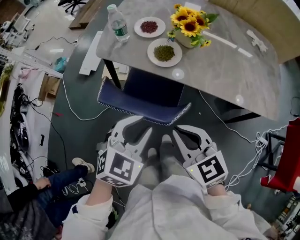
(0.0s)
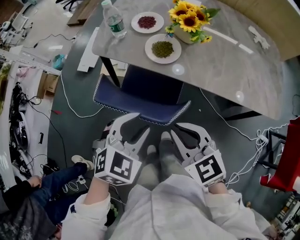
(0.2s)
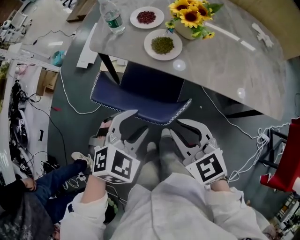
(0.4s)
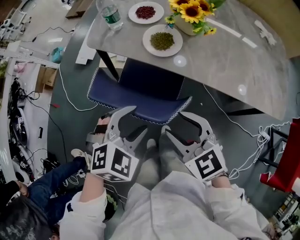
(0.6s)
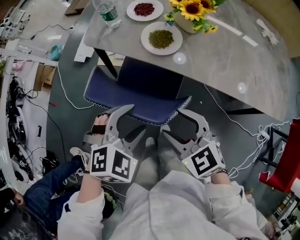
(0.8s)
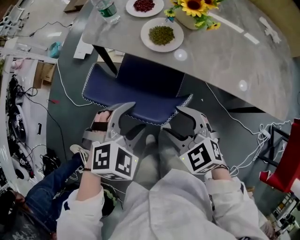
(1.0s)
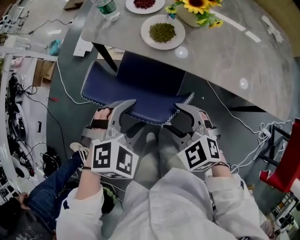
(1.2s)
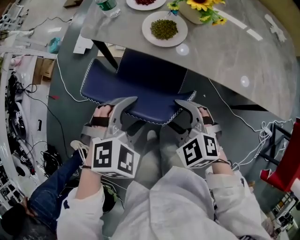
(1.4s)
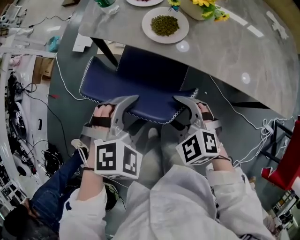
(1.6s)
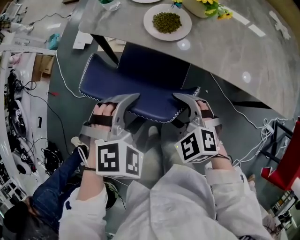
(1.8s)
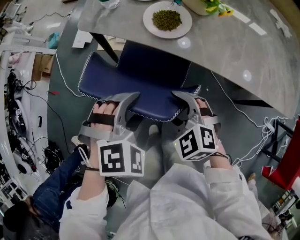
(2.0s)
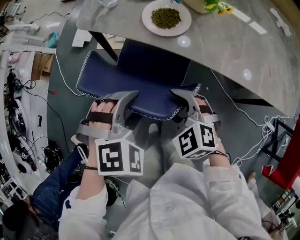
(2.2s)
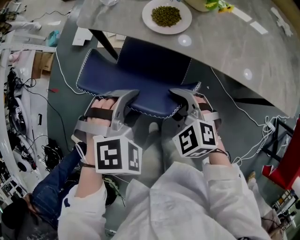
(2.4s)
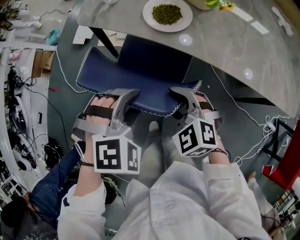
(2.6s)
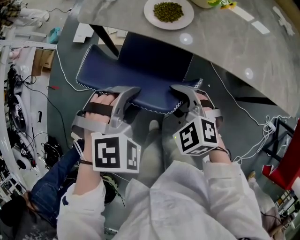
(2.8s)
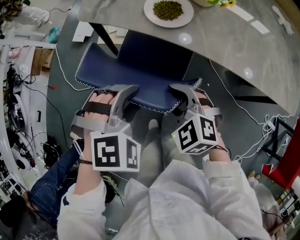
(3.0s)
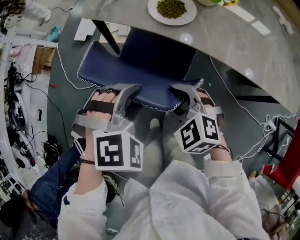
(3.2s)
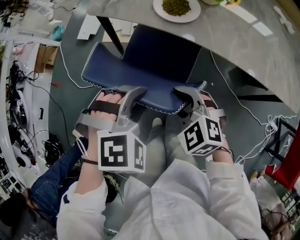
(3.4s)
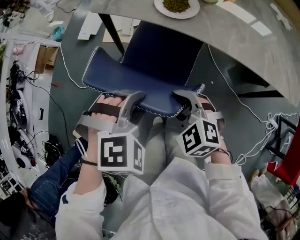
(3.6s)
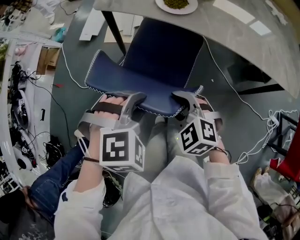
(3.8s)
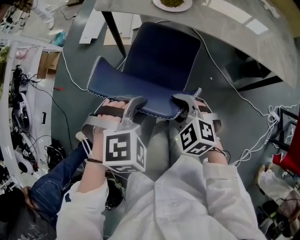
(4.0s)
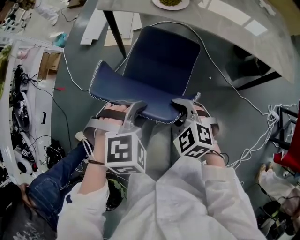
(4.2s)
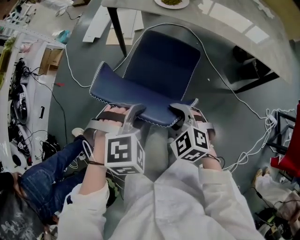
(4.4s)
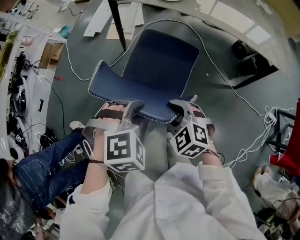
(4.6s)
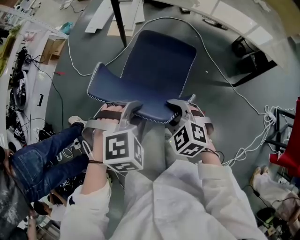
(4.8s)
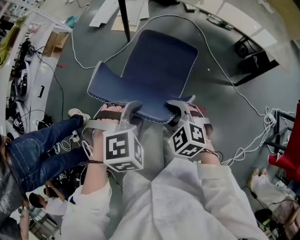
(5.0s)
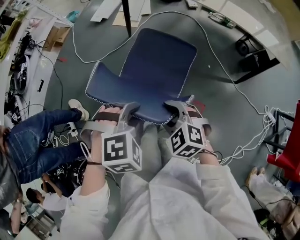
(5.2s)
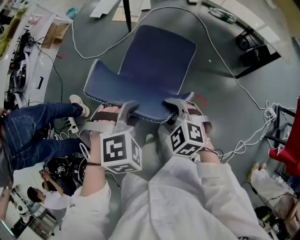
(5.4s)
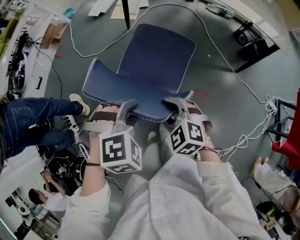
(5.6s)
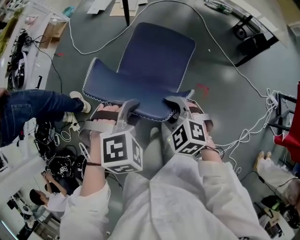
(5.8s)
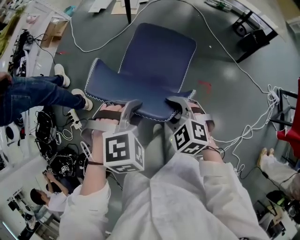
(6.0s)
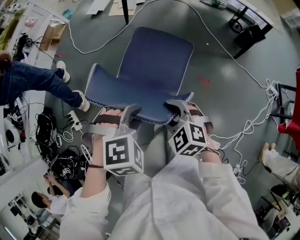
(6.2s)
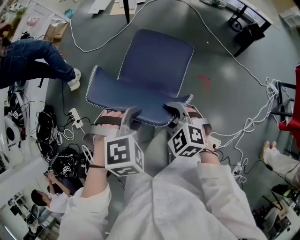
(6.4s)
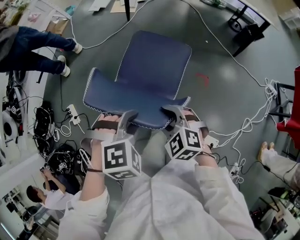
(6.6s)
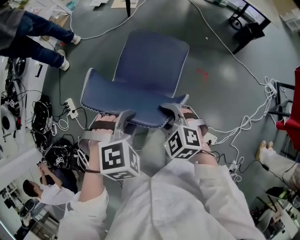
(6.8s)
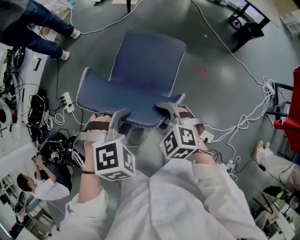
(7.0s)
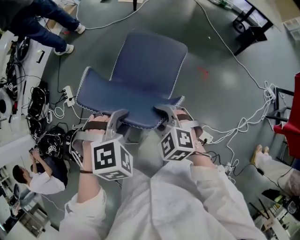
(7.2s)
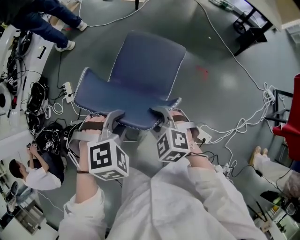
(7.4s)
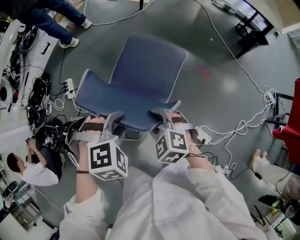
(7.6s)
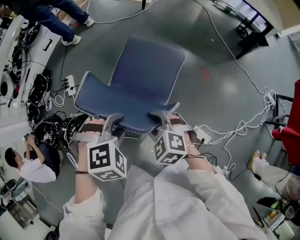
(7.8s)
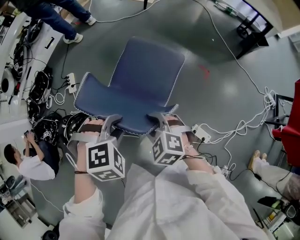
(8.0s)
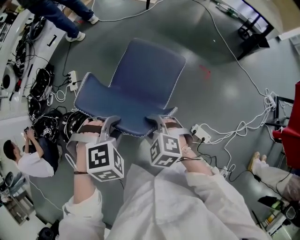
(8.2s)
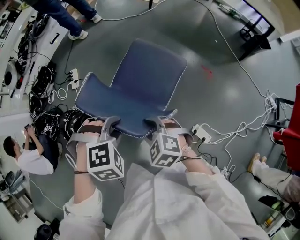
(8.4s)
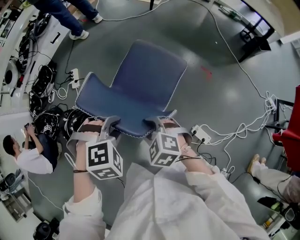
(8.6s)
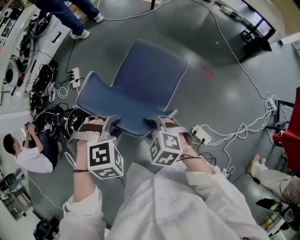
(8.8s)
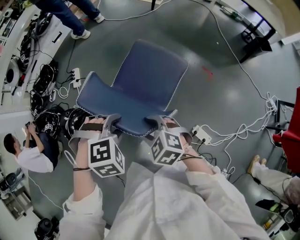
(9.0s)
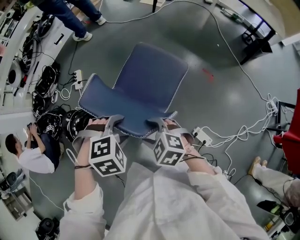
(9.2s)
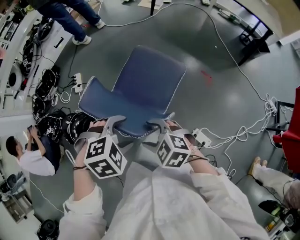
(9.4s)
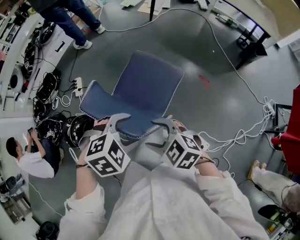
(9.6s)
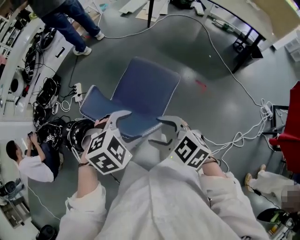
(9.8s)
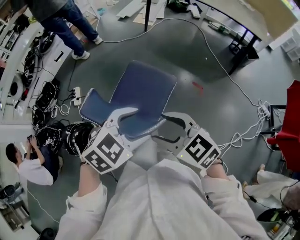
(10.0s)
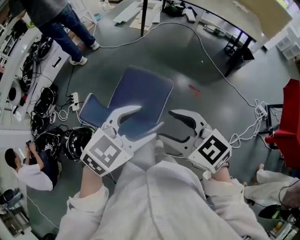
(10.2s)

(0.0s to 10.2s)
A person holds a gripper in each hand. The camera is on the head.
0.0s - 1.4s: The left gripper travels downward by roughly 10 cm, rotates roughly 30 degrees, and opens up; the right gripper is displaced downward by approximately 15 cm, rotates some 30 degrees, and opens up.
1.4s - 3.0s: The left gripper closes.
3.0s - 4.4s: Both grippers move backward, approximately 25 cm.
4.4s - 5.8s: Both grippers travel together backward, about 25 cm.
5.8s - 7.2s: The grippers both shift backward by some 25 cm.
7.2s - 8.8s: The left gripper changes place by some 20 cm. The right gripper changes place by approximately 20 cm.
8.8s - 10.2s: Both grippers move upward, roughly 20 cm. The right gripper points its fingers some 30 degrees further upward, while the left gripper points its fingers some 40 degrees further upward, and opens up.

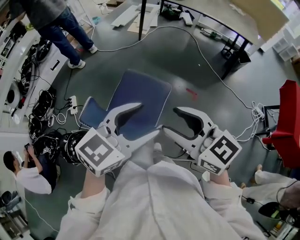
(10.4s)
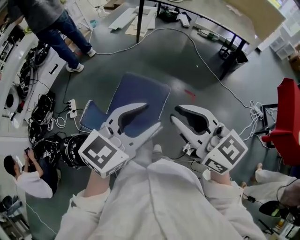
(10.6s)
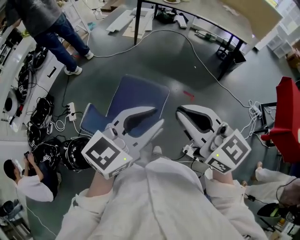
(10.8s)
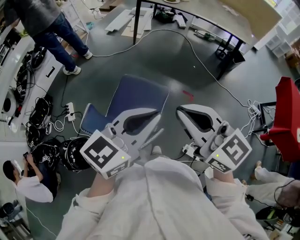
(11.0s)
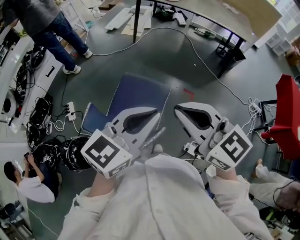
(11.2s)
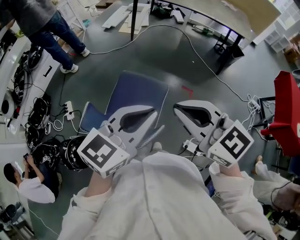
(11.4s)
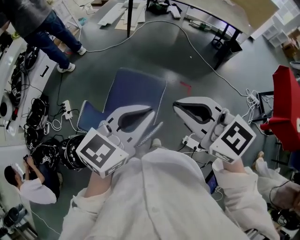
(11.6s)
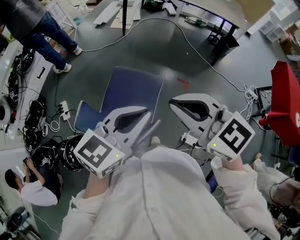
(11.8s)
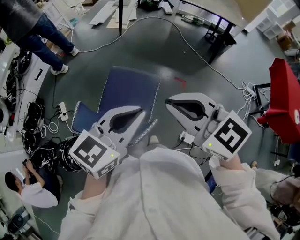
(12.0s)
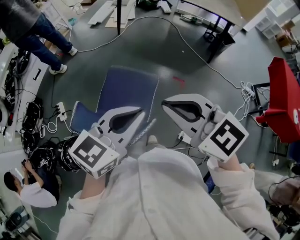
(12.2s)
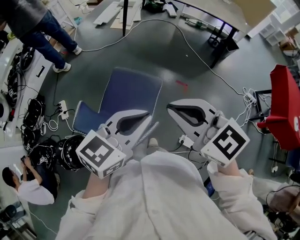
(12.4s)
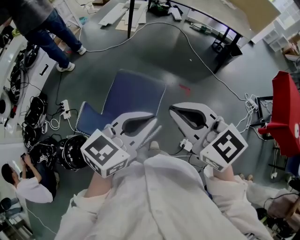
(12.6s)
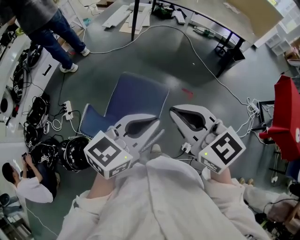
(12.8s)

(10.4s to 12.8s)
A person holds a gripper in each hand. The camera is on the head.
10.4s - 11.6s: The right gripper closes its fingers, while the left gripper closes up.
11.6s - 12.8s: The grippers make only small movements.

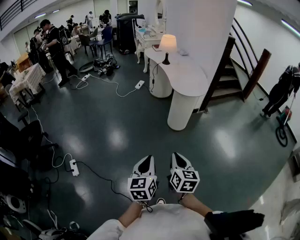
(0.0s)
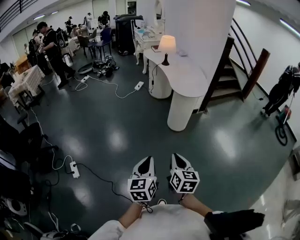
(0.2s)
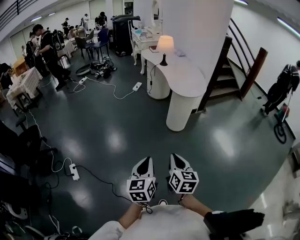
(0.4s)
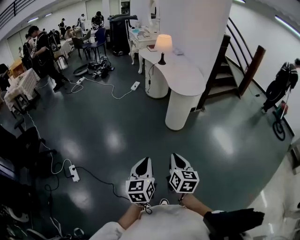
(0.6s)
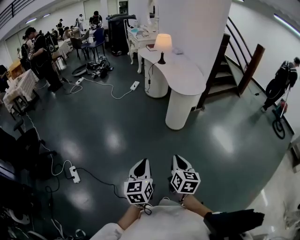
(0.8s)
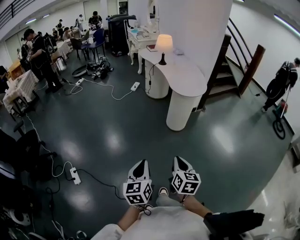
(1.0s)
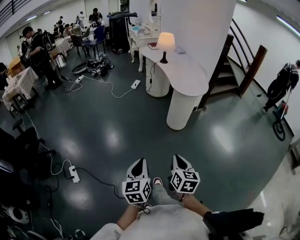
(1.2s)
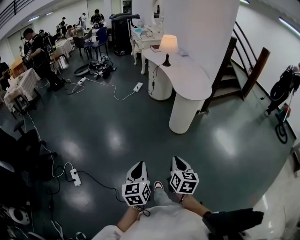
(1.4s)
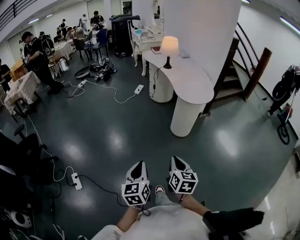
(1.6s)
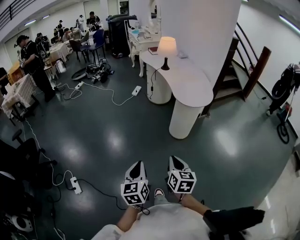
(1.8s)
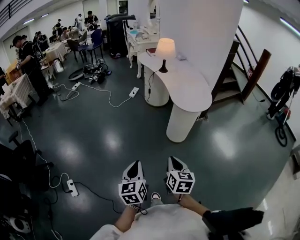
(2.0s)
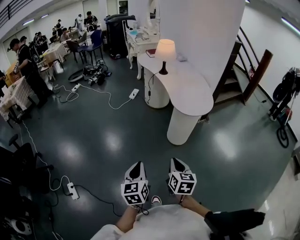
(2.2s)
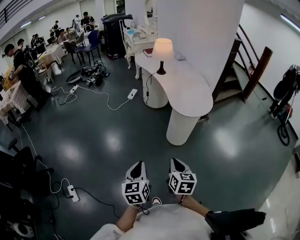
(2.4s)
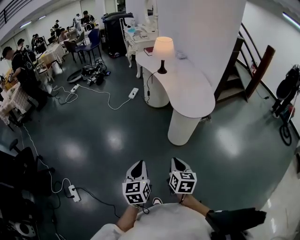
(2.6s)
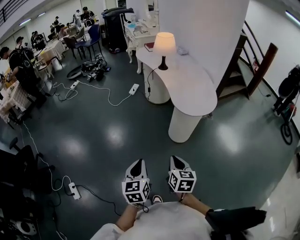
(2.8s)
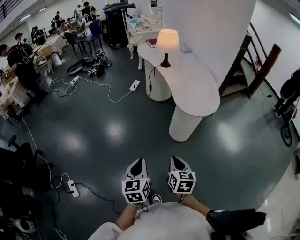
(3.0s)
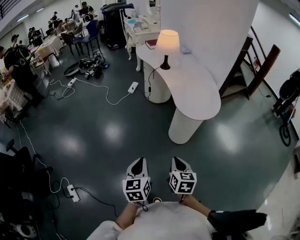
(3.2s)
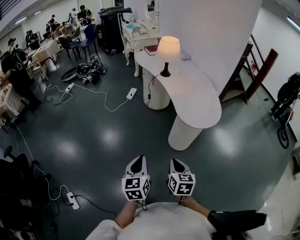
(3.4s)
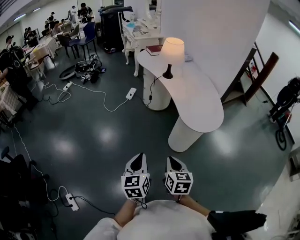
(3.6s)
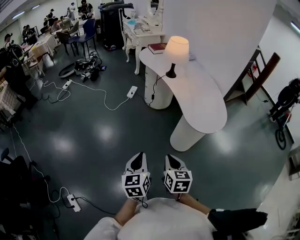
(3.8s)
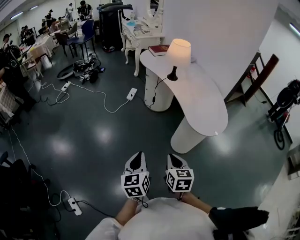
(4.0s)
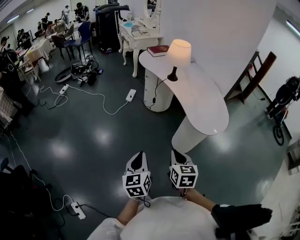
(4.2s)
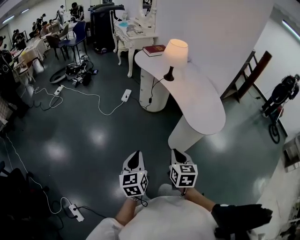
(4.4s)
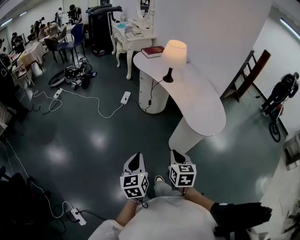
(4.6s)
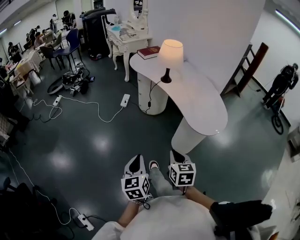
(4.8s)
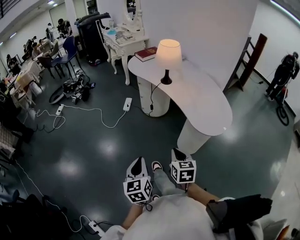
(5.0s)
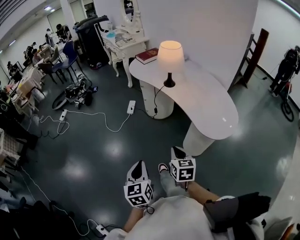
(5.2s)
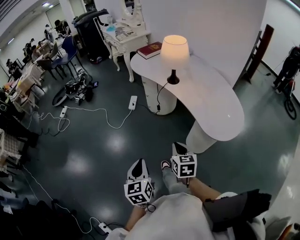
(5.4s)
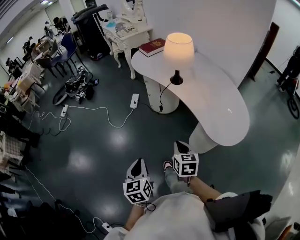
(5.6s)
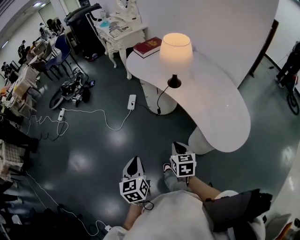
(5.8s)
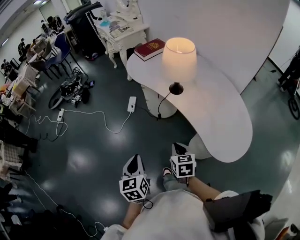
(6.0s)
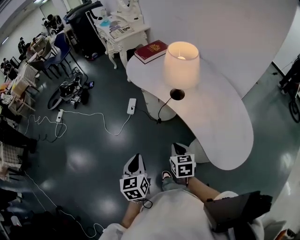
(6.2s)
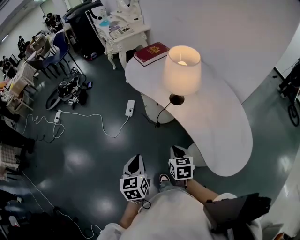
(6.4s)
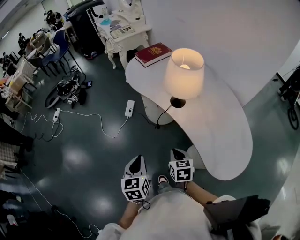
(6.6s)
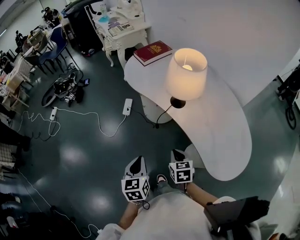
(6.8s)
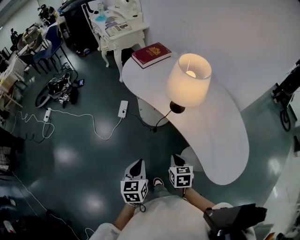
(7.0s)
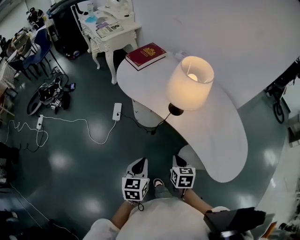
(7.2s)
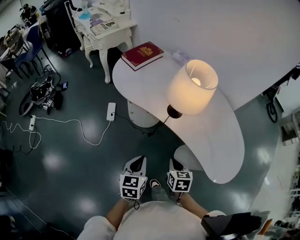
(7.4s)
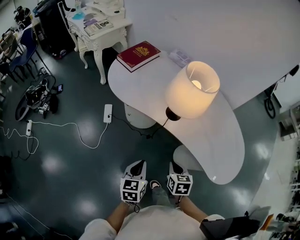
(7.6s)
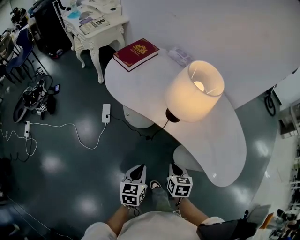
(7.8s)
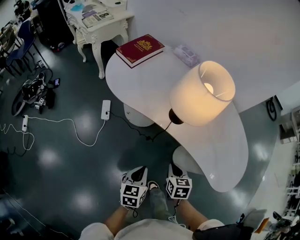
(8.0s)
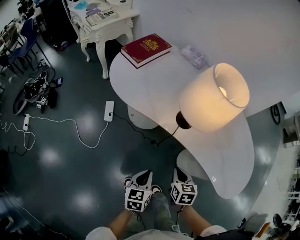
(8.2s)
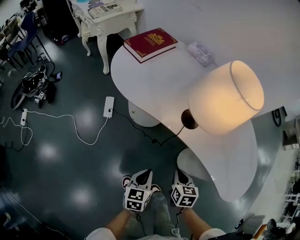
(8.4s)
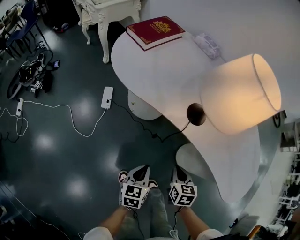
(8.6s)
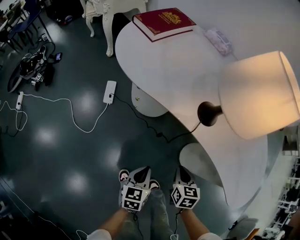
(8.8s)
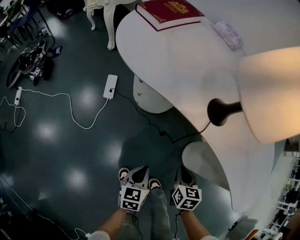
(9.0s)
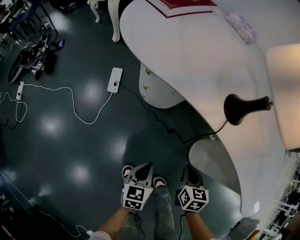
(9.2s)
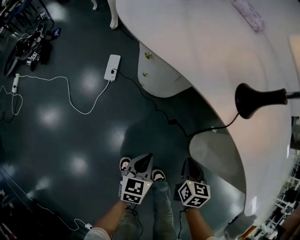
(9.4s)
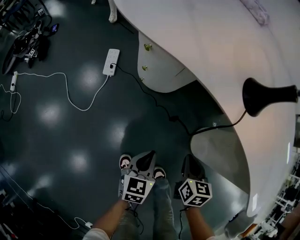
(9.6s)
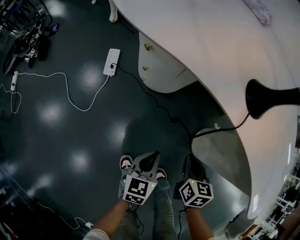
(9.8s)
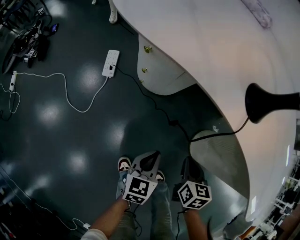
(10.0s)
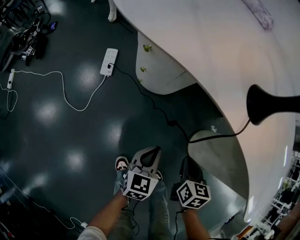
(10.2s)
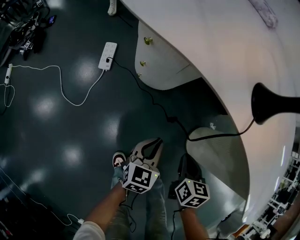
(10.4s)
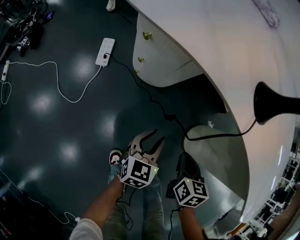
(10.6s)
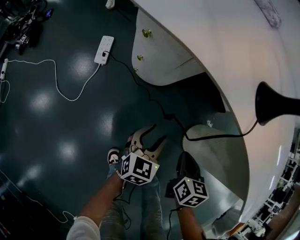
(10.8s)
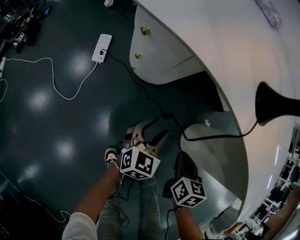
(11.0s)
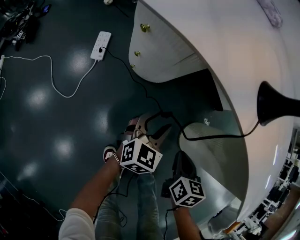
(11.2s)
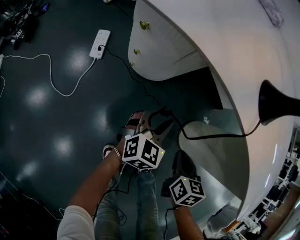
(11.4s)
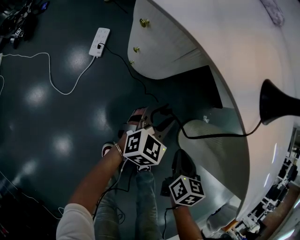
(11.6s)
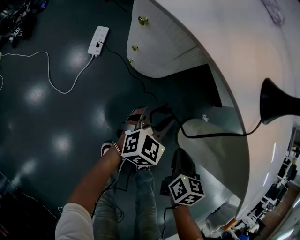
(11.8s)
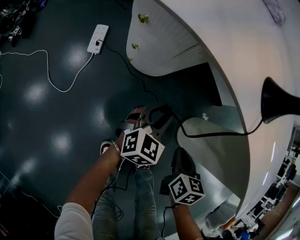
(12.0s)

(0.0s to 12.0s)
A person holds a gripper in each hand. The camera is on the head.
0.0s - 1.6s: The right gripper heads forward and to the left, covering about 15 cm. Meanwhile the left gripper is displaced to the left and forward by some 15 cm.
1.6s - 3.0s: The two grippers go some 20 cm forward.
3.0s - 4.4s: The two grippers go some 25 cm forward and to the left.
4.4s - 6.0s: The grippers both shift forward by approximately 35 cm.
6.0s - 7.6s: The right gripper ends up some 15 cm from where it was, and swivels roughly 20 degrees. Meanwhile the left gripper moves some 20 cm, and rotates approximately 30 degrees.
7.6s - 9.0s: The grippers both shift downward by some 25 cm.
9.0s - 10.4s: The left gripper is displaced forward and downward by some 10 cm, while the right gripper moves downward, some 10 cm.
10.4s - 12.0s: The left gripper travels forward by about 10 cm, rotates about 20 degrees, and opens its fingers.
